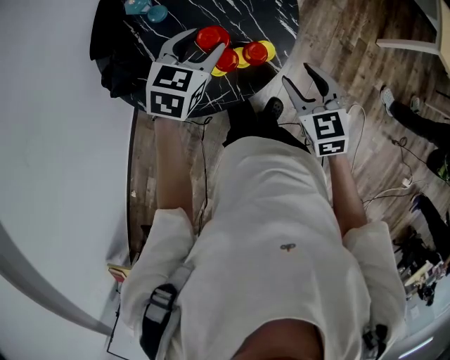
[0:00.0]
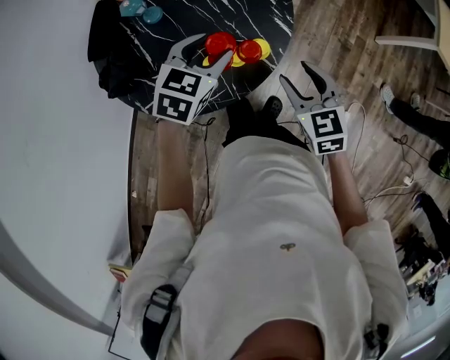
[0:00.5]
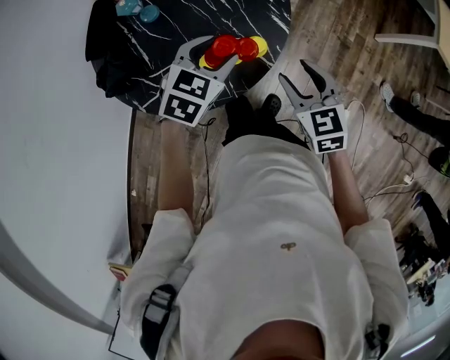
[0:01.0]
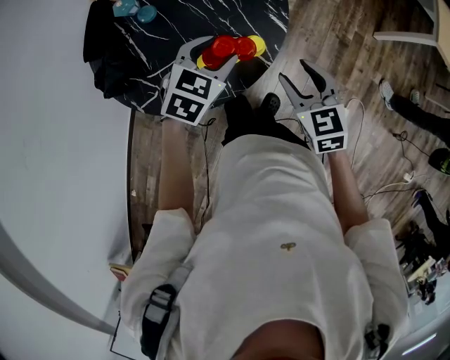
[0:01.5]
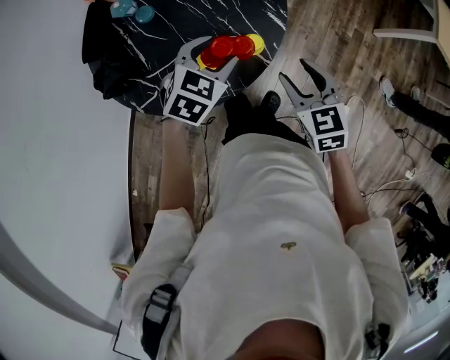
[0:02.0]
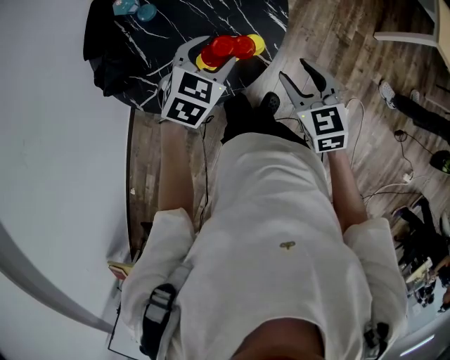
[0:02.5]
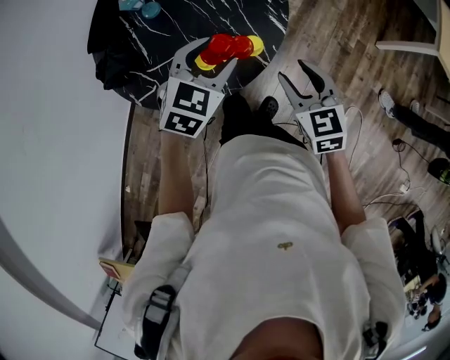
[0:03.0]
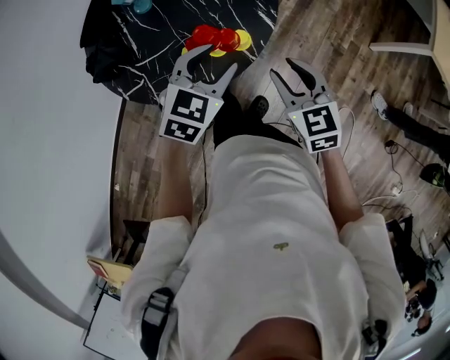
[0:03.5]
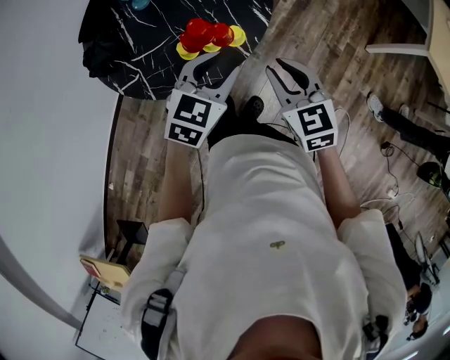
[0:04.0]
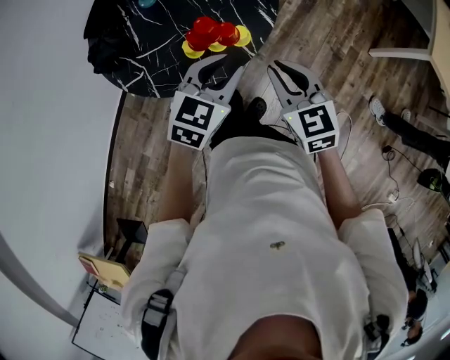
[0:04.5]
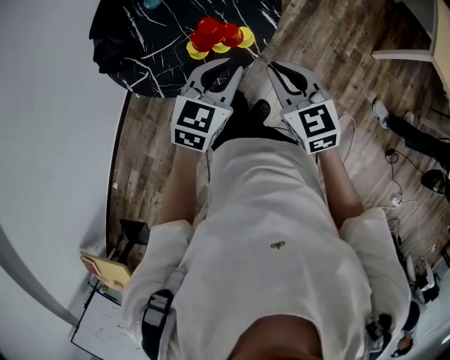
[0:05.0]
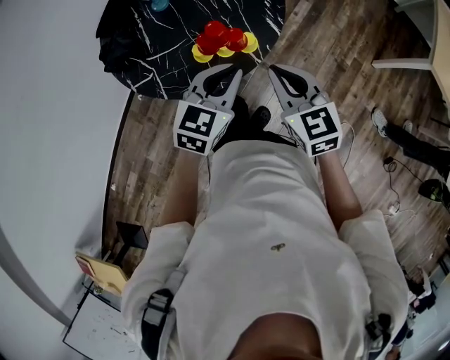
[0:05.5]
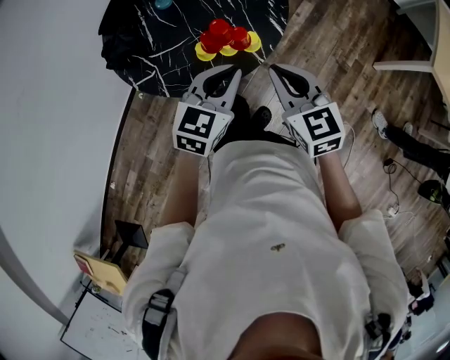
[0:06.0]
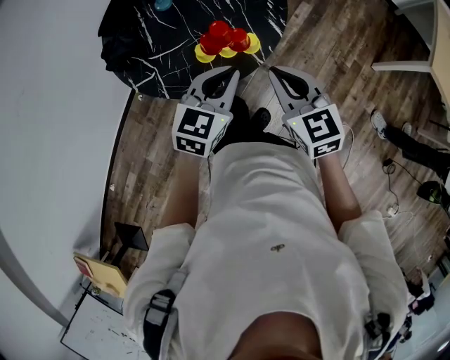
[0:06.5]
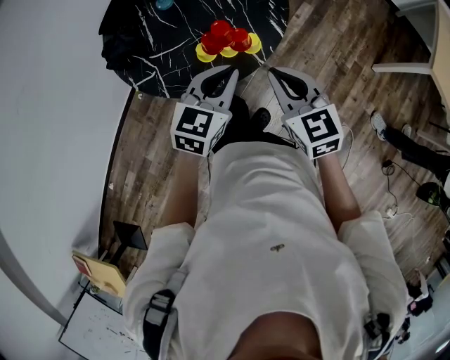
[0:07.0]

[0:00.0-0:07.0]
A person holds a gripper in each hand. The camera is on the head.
0:00.0 to 0:02.0: The left gripper shifts some 5 cm to the right.
0:02.0 to 0:03.5: The left gripper moves backward, some 5 cm.
0:03.5 to 0:05.0: The right gripper closes. Meanwhile the left gripper changes place by roughly 5 cm, and closes.
0:05.0 to 0:07.0: The grippers make only small movements.

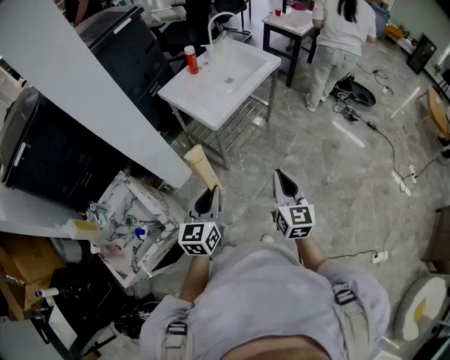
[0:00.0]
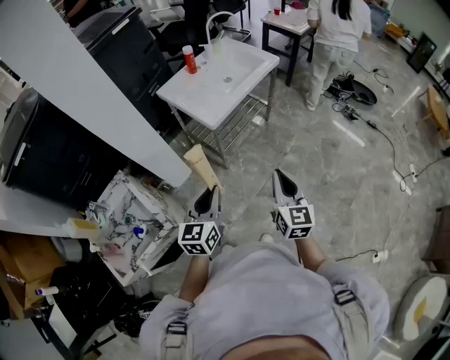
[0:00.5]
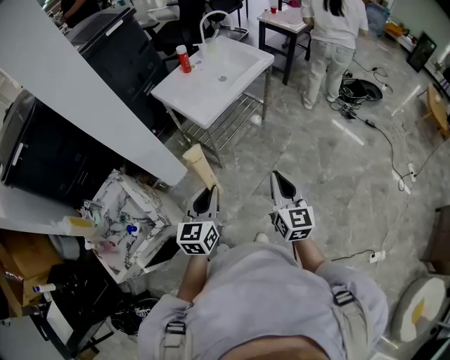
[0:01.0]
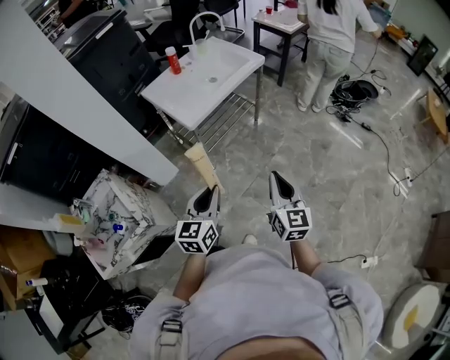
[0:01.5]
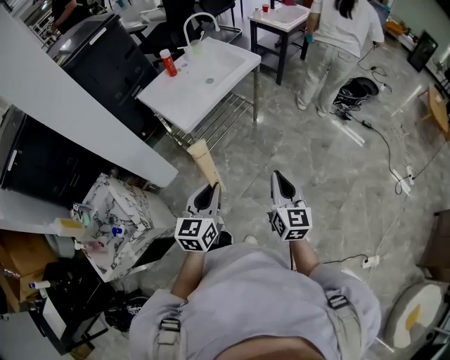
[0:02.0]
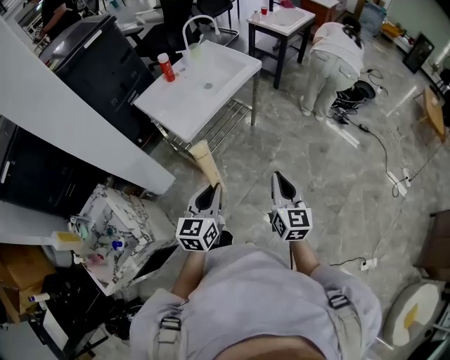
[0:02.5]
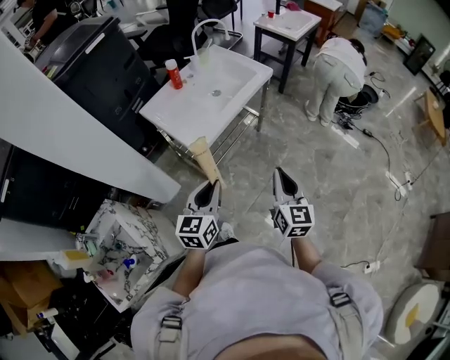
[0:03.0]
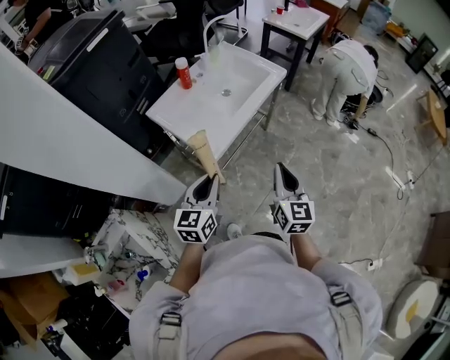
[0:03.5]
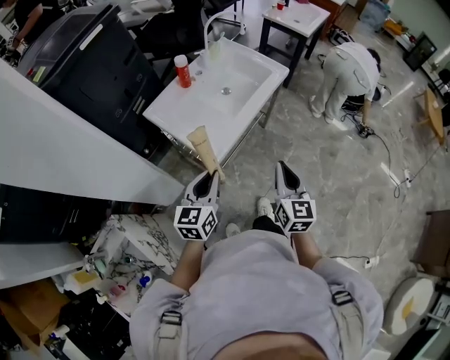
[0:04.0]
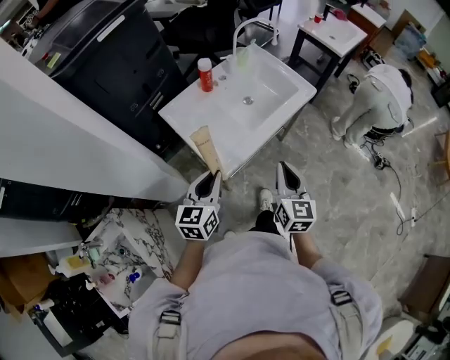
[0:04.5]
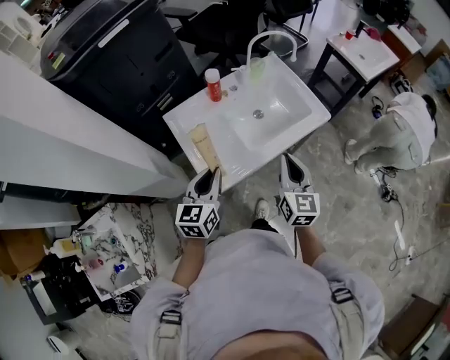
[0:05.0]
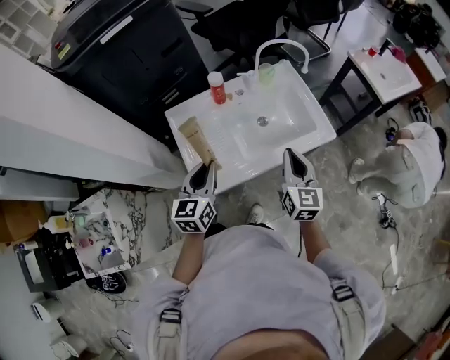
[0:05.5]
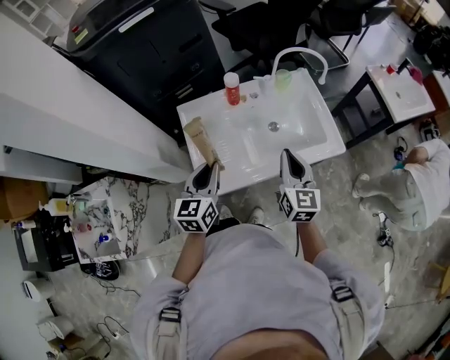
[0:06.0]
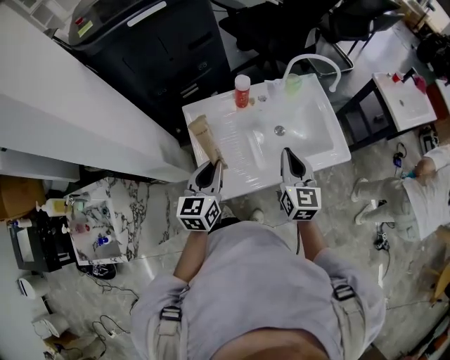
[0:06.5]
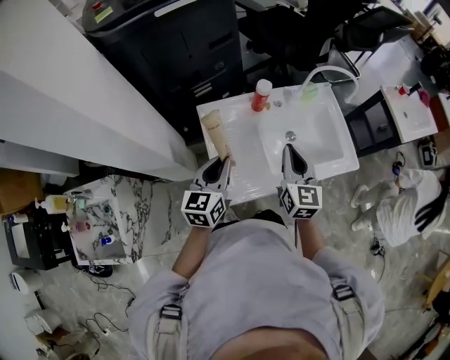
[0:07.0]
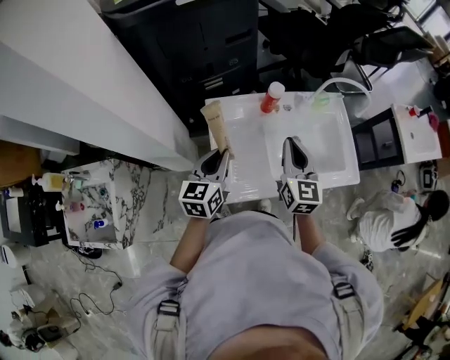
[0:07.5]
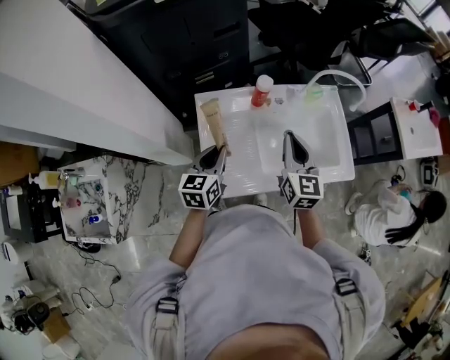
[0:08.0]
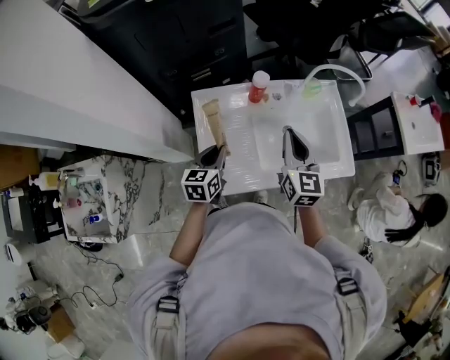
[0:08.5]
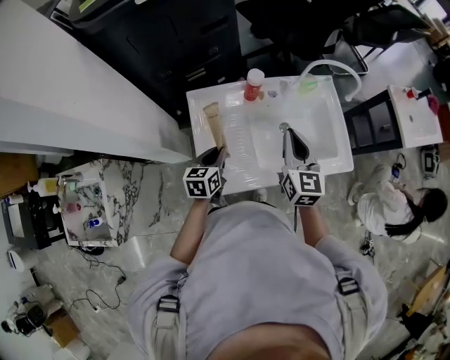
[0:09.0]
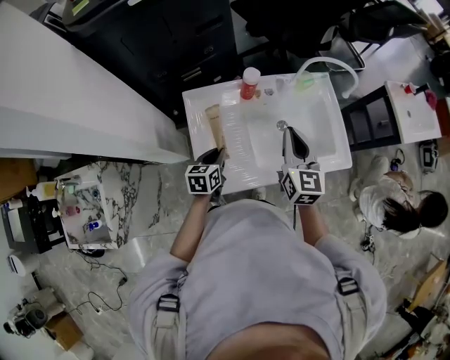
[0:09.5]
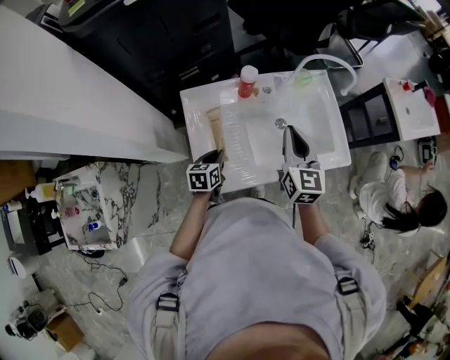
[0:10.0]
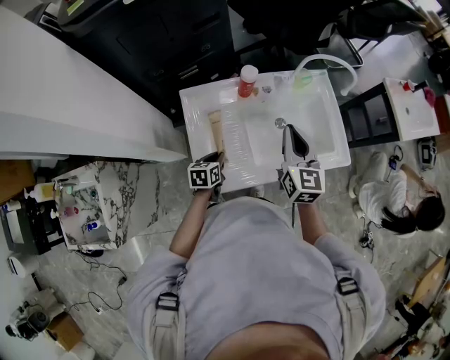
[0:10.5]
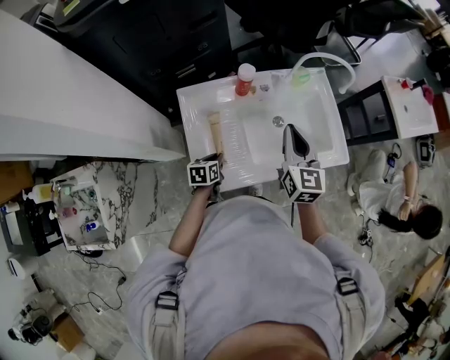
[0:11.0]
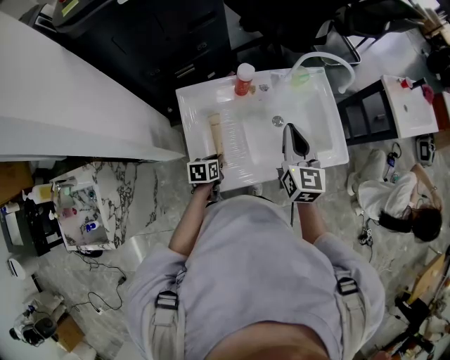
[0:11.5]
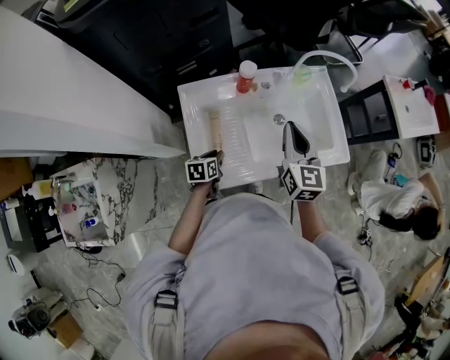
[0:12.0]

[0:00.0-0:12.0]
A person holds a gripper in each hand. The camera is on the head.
0:00.0 to 0:02.0: The two grippers go roughly 15 cm to the right.
0:02.0 to 0:04.0: Both grippers move forward and to the left, roughly 35 cm.
0:04.0 to 0:06.0: The right gripper shifts by approximately 35 cm, and turns by approximately 40 degrees. The left gripper shifts by about 25 cm, and swivels about 40 degrees.
0:06.0 to 0:08.0: The two grippers go about 10 cm forward and to the left.
0:08.0 to 0:10.0: The left gripper is displaced downward by approximately 15 cm, and swivels roughly 20 degrees.
0:10.0 to 0:12.0: The left gripper goes roughly 5 cm downward.

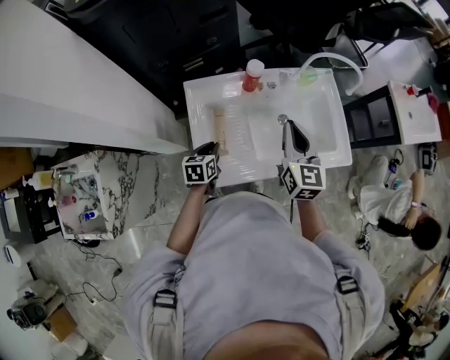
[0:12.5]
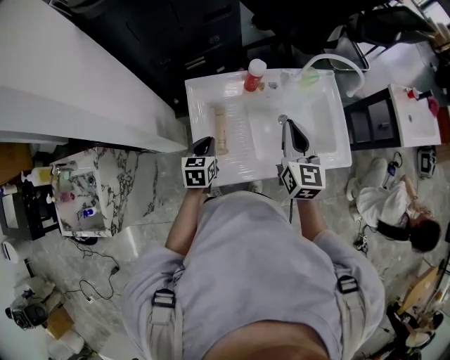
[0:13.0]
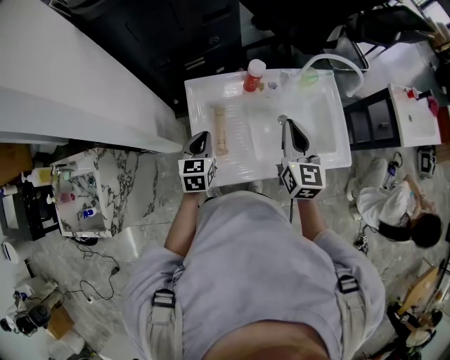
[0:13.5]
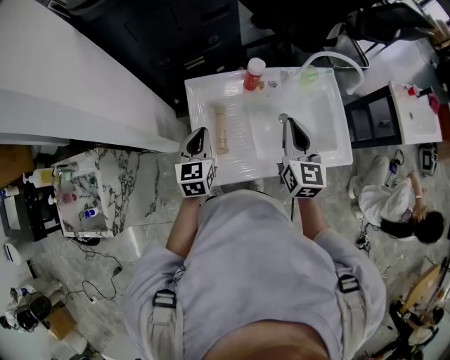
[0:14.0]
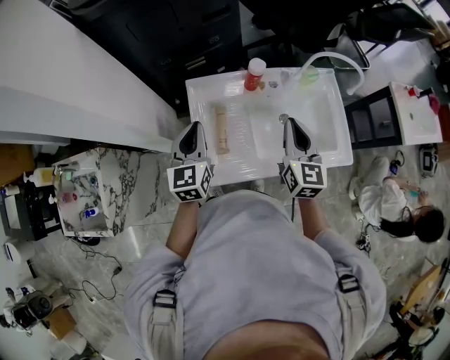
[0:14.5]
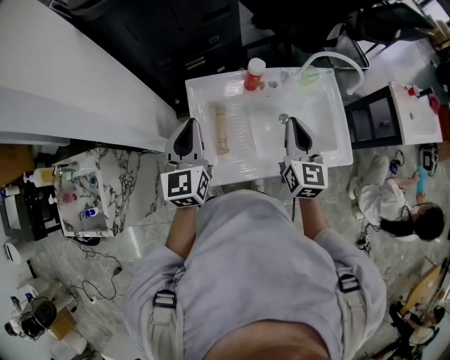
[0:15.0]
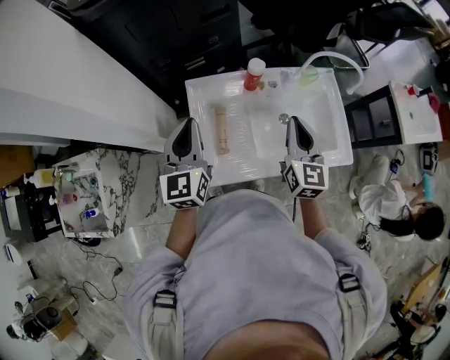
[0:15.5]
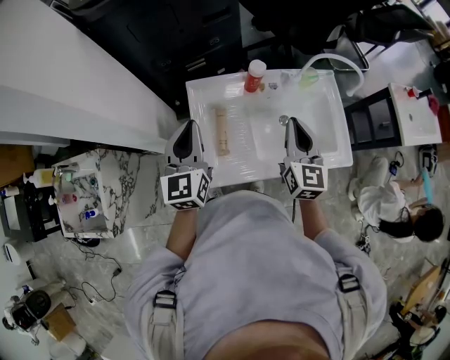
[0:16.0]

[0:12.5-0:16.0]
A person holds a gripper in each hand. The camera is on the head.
0:12.5 to 0:14.5: The left gripper goes approximately 20 cm upward, and swivels about 40 degrees.
0:14.5 to 0:16.0: The left gripper moves upward, roughly 5 cm.

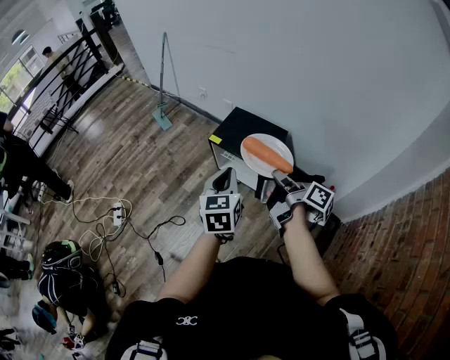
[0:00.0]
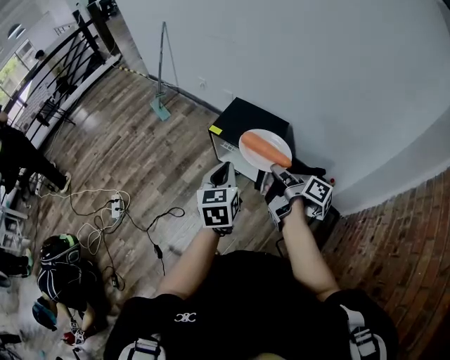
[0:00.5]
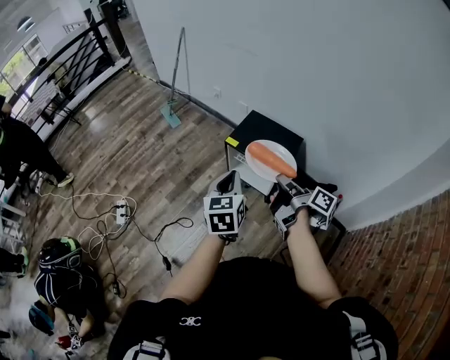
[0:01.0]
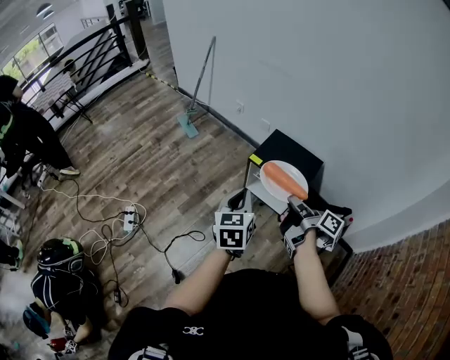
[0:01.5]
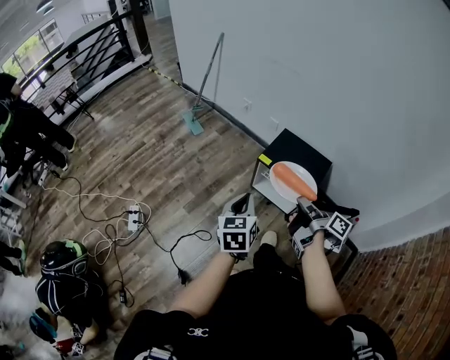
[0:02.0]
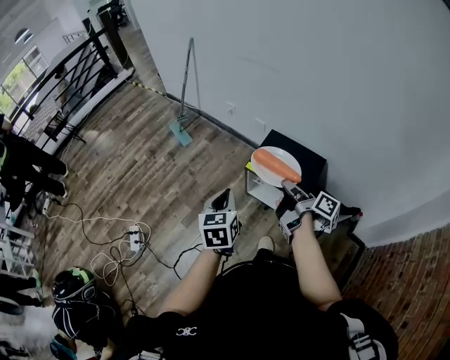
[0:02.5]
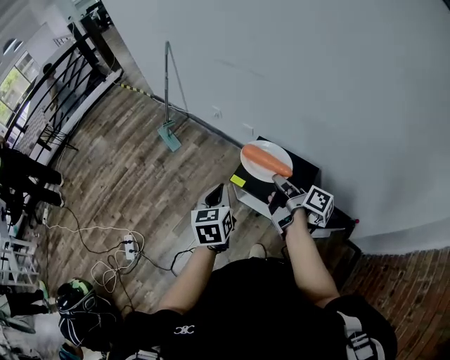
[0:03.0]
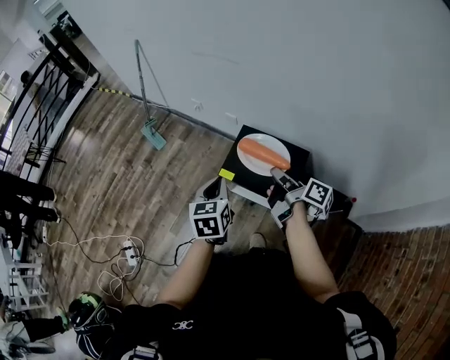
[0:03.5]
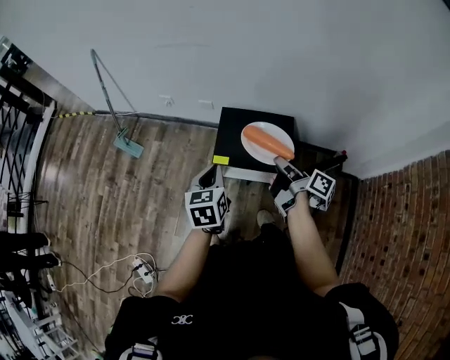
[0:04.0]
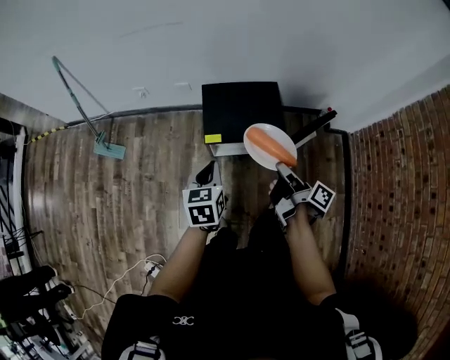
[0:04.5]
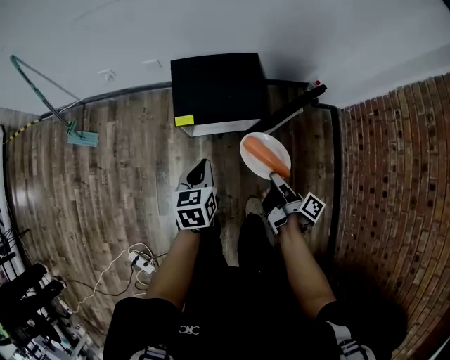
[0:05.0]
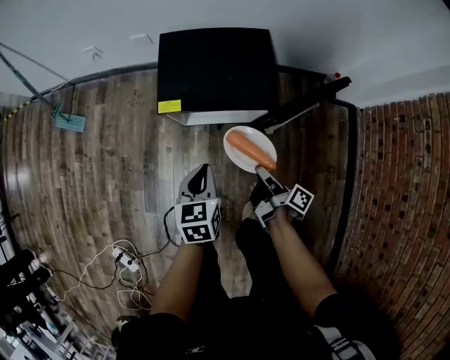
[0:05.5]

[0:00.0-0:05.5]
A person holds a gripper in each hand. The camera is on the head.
0:00.0 to 0:02.0: The left gripper ends up approximately 25 cm from where it was.
0:02.0 to 0:03.5: The left gripper shifts by approximately 30 cm.
0:03.5 to 0:05.5: The left gripper shifts roughly 30 cm downward, and rotates approximately 30 degrees.
